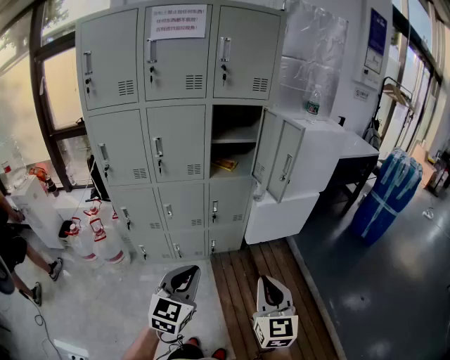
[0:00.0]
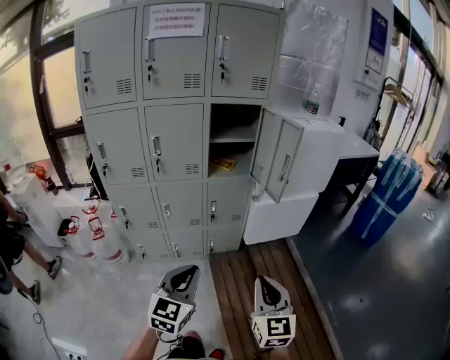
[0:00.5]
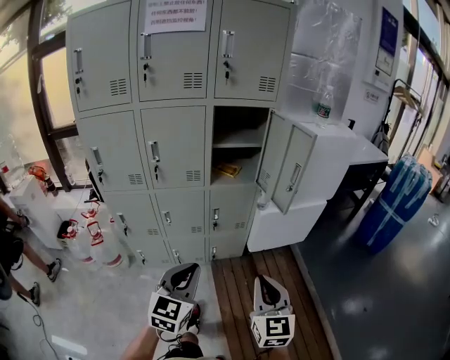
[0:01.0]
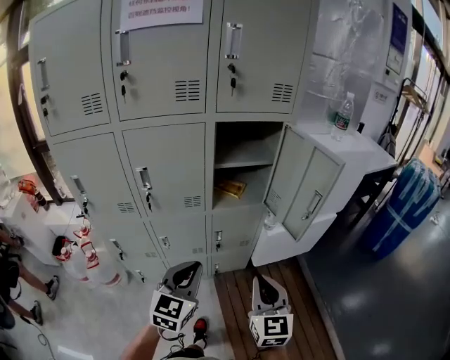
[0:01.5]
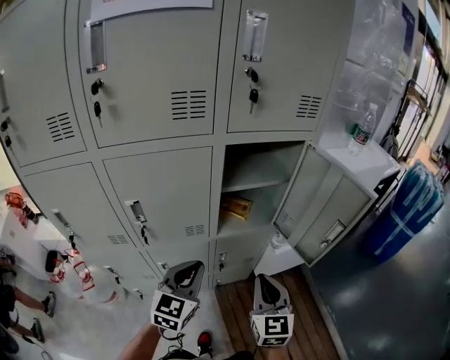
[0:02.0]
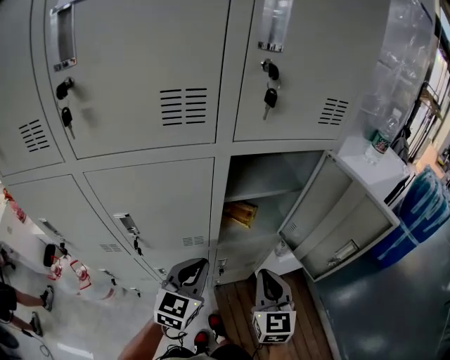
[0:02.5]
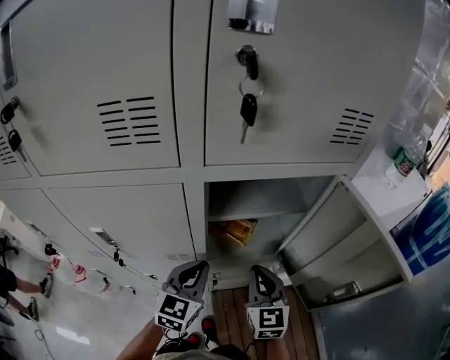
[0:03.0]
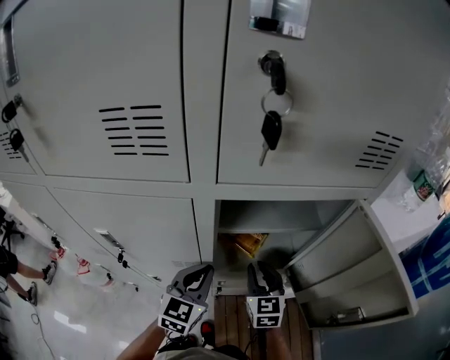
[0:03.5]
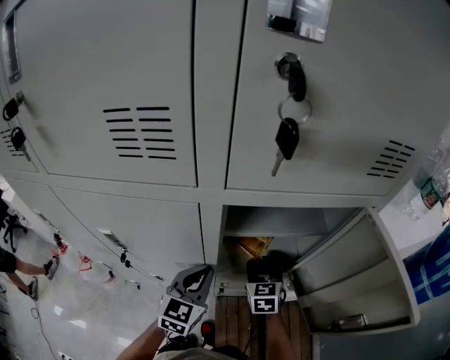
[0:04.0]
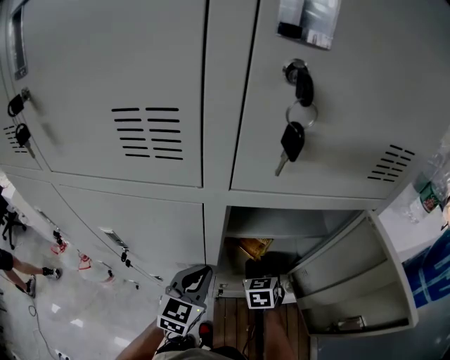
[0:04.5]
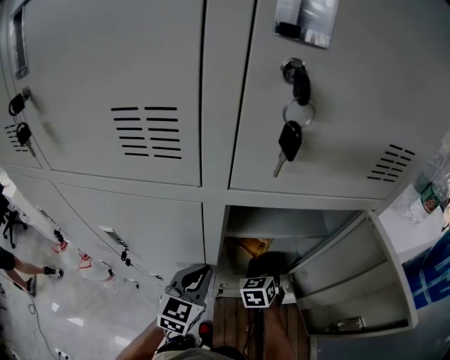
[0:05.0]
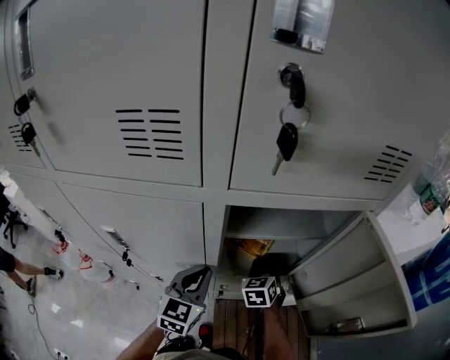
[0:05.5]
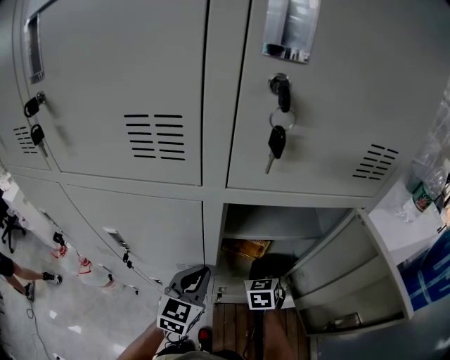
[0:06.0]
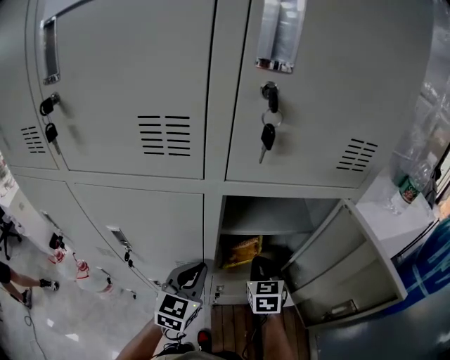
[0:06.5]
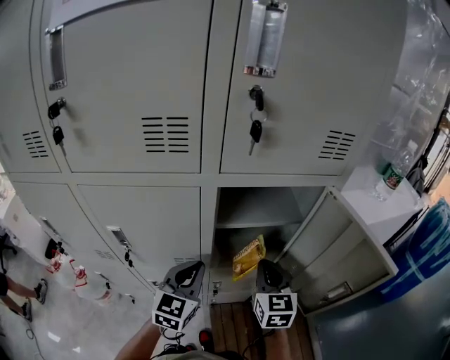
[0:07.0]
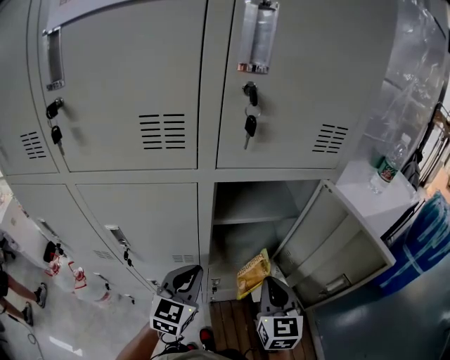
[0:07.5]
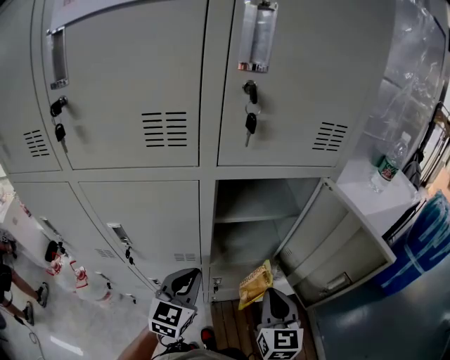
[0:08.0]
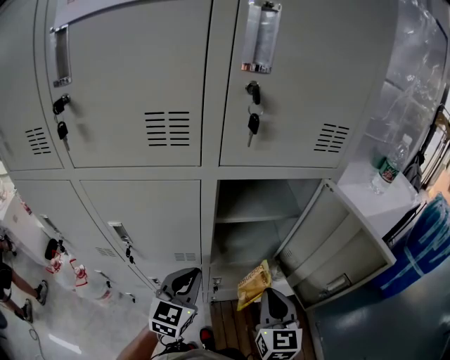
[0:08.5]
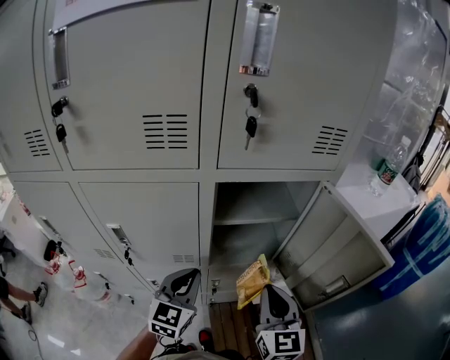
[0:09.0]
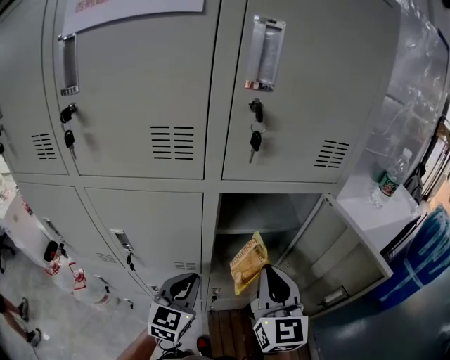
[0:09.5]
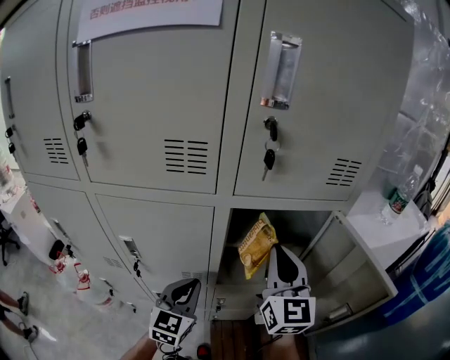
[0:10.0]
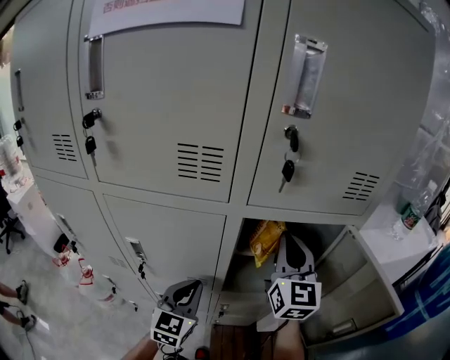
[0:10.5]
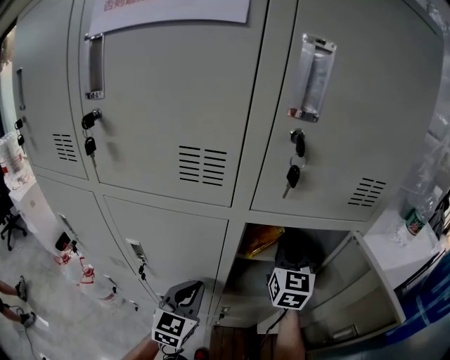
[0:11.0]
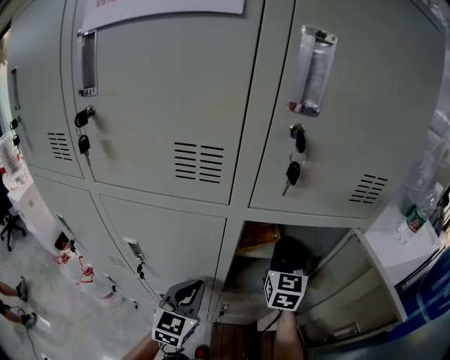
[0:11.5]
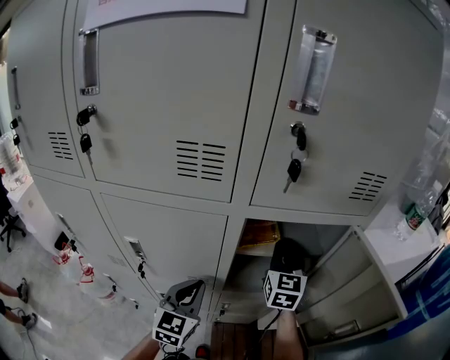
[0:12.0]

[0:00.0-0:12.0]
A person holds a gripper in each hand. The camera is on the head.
0:00.0 to 0:02.0: Both grippers travel together forward, about 40 cm.
0:02.0 to 0:04.0: The right gripper moves forward and downward, approximately 30 cm, rotates some 20 degrees, and opens its fingers. Meanwhile the left gripper shifts about 15 cm forward.
0:04.0 to 0:06.0: The right gripper closes its fingers.
0:06.0 to 0:08.0: The left gripper heads backward, covering some 5 cm. Meanwhile the right gripper shifts approximately 25 cm backward and upward, and swivels approximately 30 degrees.
0:08.0 to 0:10.0: The right gripper is displaced upward and forward by some 20 cm, and swivels some 20 degrees.
0:10.0 to 0:12.0: The right gripper heads forward and downward, covering some 15 cm.

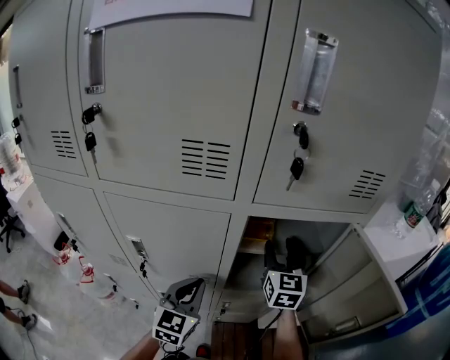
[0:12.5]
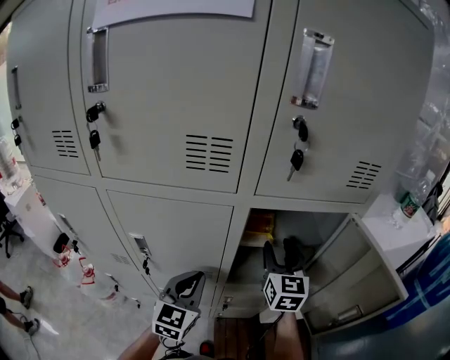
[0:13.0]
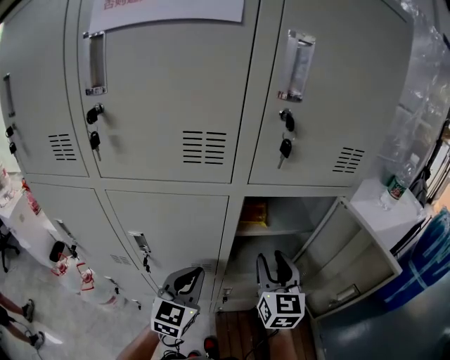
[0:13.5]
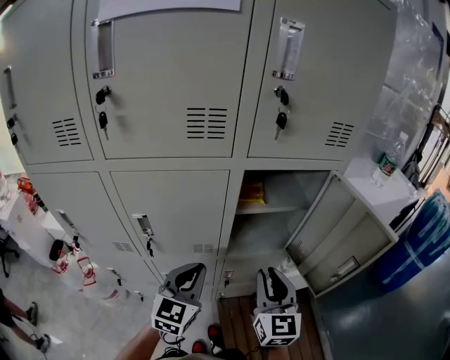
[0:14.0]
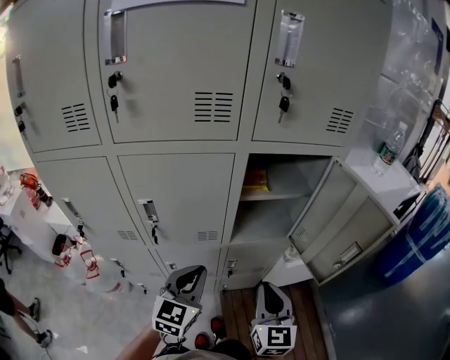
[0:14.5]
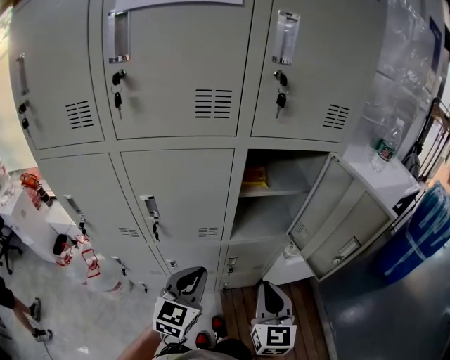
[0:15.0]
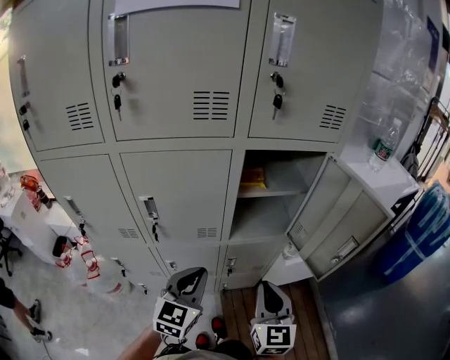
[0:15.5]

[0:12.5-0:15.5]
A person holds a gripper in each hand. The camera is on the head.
0:12.5 to 0:14.0: The left gripper travels backward by about 5 cm; the right gripper heads backward, covering some 25 cm, and closes its fingers.
0:14.0 to 0:15.5: The two grippers go about 5 cm backward.

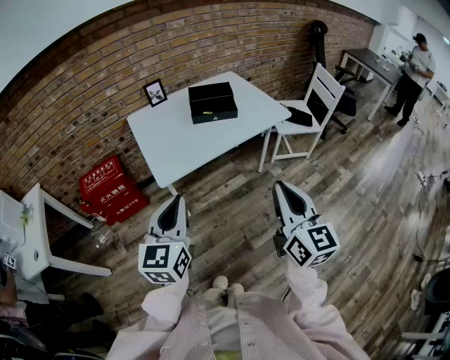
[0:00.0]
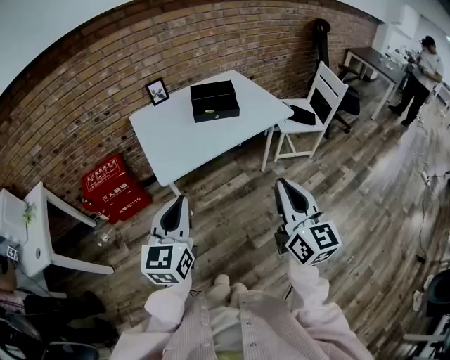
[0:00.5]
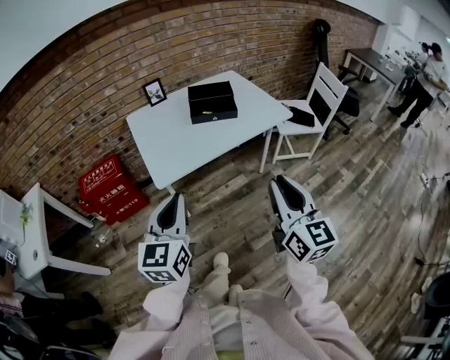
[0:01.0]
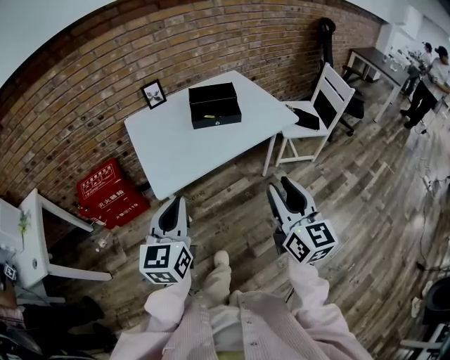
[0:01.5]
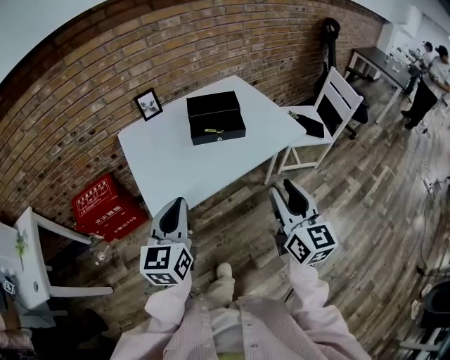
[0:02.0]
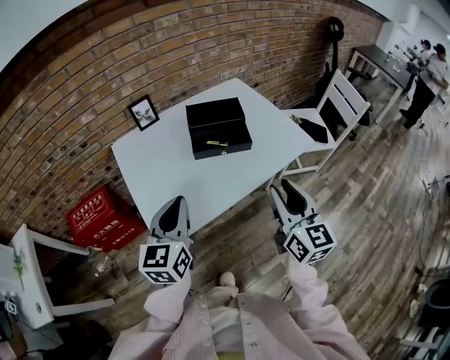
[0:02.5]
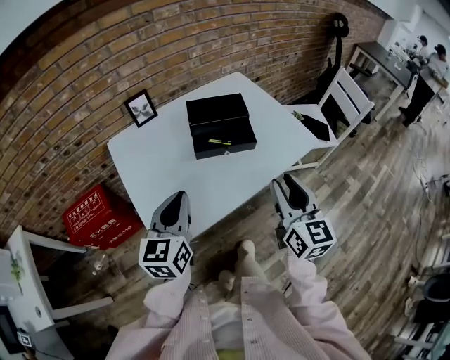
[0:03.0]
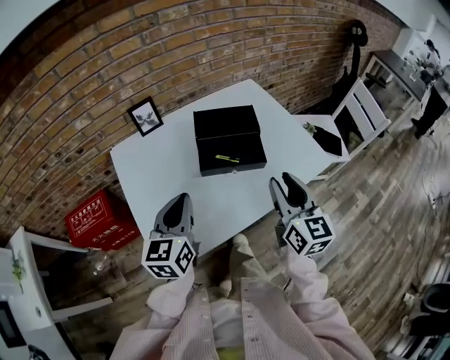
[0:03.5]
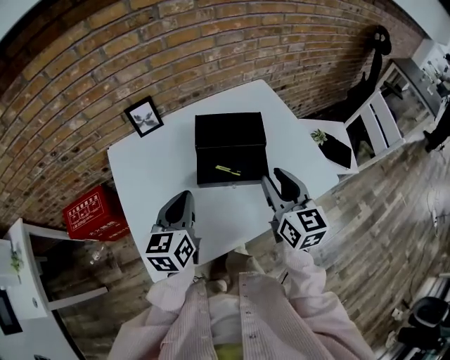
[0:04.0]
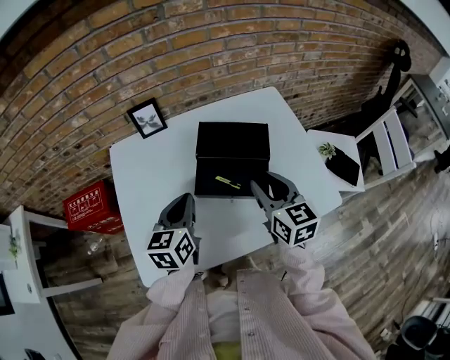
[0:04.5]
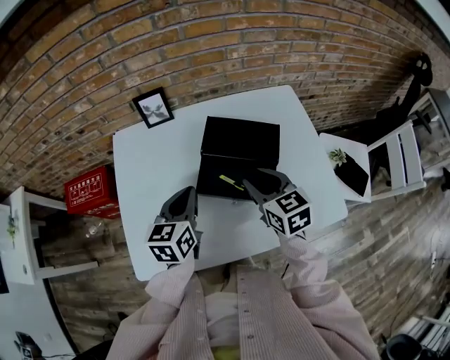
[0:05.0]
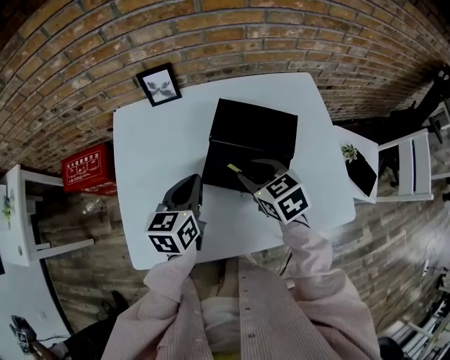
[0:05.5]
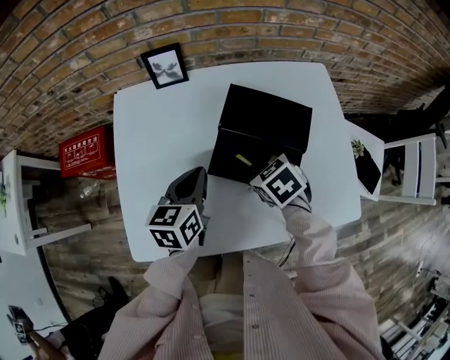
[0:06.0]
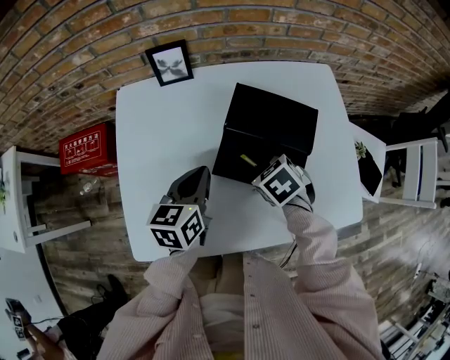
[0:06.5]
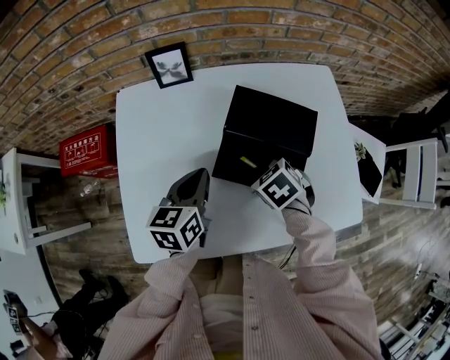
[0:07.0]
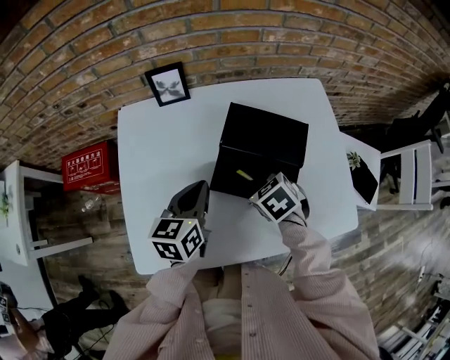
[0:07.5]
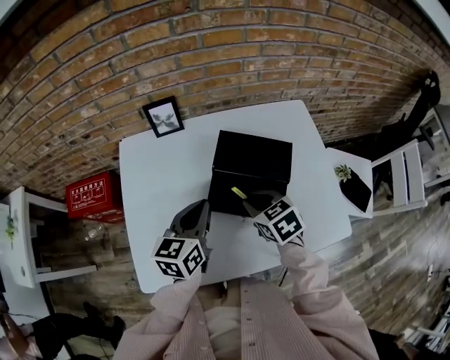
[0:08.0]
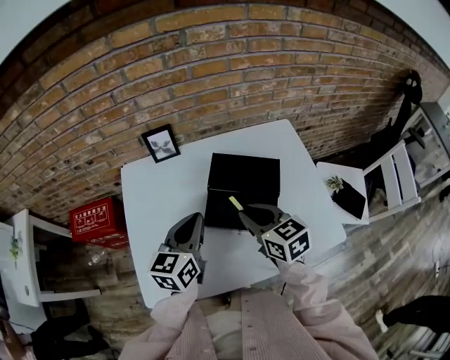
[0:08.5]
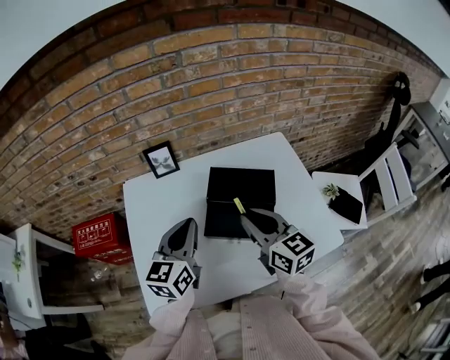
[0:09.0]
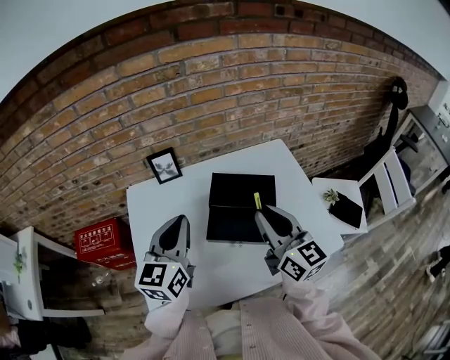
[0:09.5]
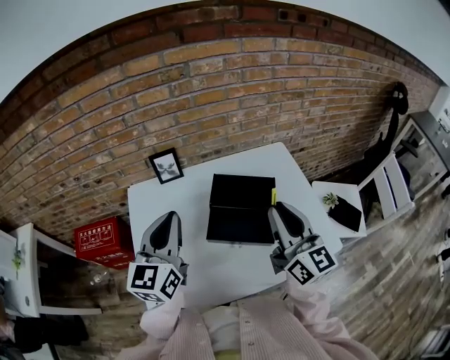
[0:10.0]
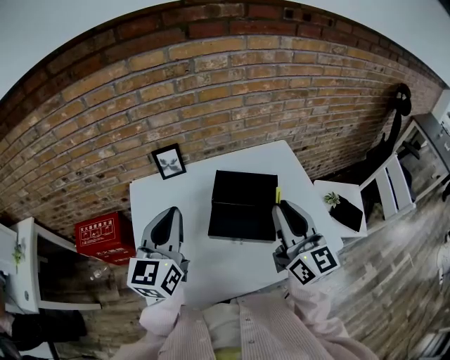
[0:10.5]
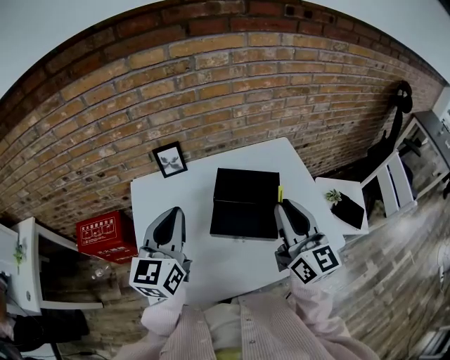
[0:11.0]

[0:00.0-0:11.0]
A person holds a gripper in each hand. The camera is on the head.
0:00.0 to 0:02.0: The grippers both shift forward by about 20 cm. The right gripper opens up.
0:02.0 to 0:03.5: Both grippers move forward, about 20 cm.
0:03.5 to 0:05.5: The left gripper ends up roughly 15 cm from where it was, and swivels some 20 degrees. Meanwhile the right gripper moves roughly 25 cm, and tips its fingers downward by roughly 40 degrees.
0:05.5 to 0:07.5: The right gripper is displaced downward by approximately 5 cm, and swivels roughly 20 degrees.
0:07.5 to 0:09.0: The right gripper moves upward, some 20 cm, and tilts its fingers some 50 degrees upward, while the left gripper is displaced upward by approximately 15 cm, and changes its angle by about 20 degrees.
0:09.0 to 0:11.0: The right gripper goes roughly 10 cm upward and to the right, and swivels approximately 20 degrees. The left gripper moves upward, about 5 cm.
